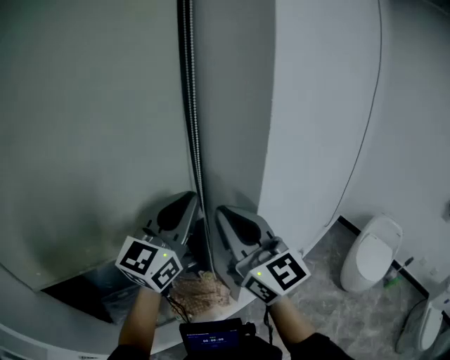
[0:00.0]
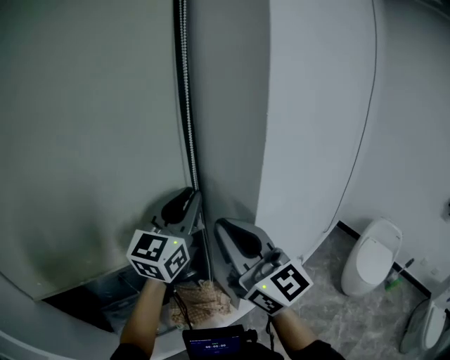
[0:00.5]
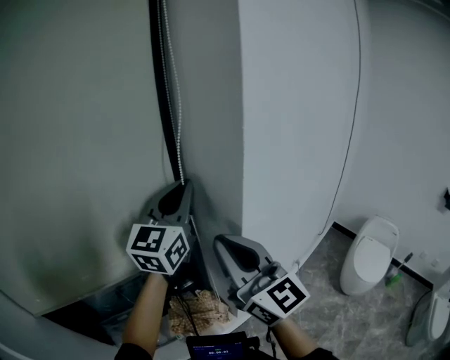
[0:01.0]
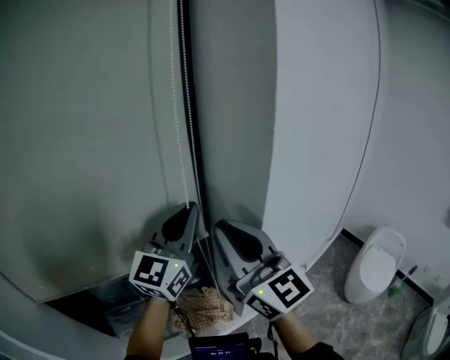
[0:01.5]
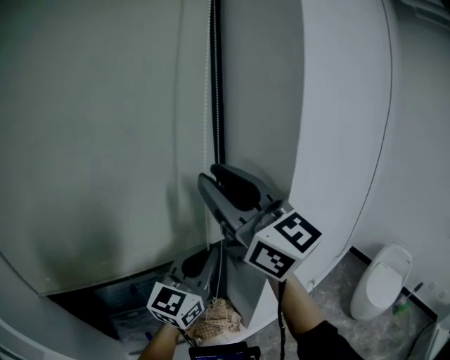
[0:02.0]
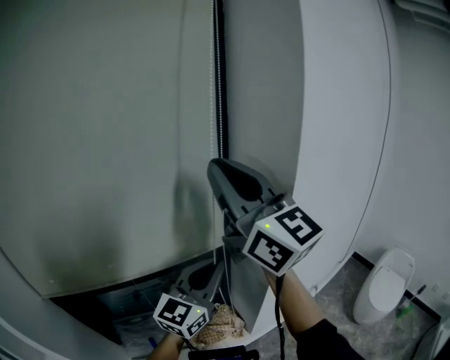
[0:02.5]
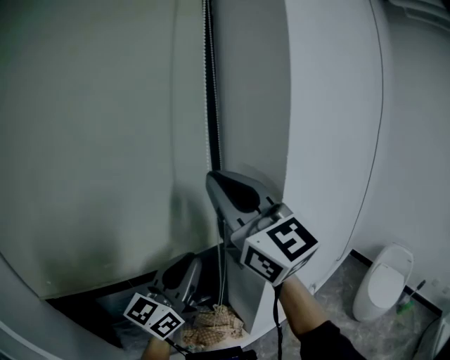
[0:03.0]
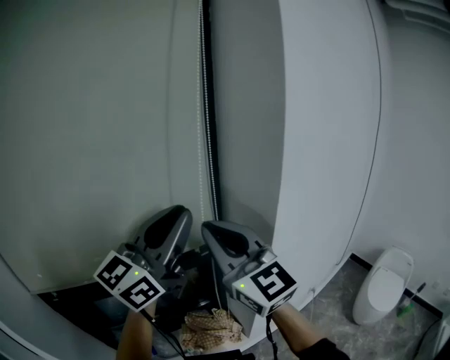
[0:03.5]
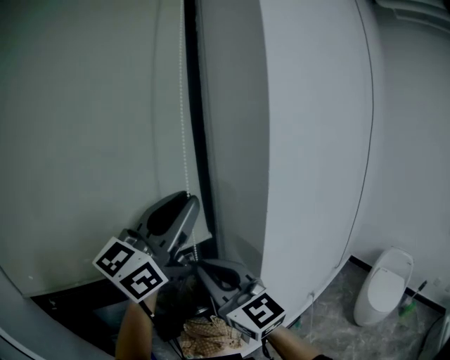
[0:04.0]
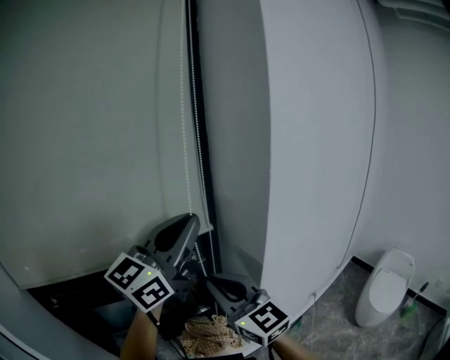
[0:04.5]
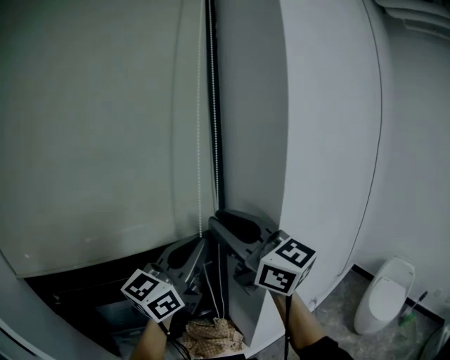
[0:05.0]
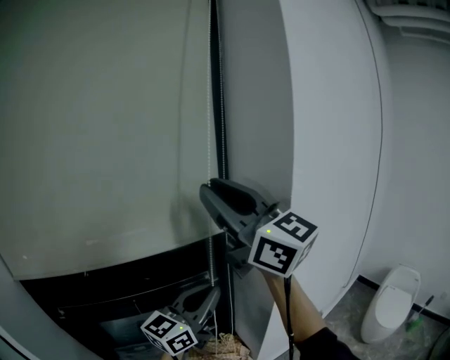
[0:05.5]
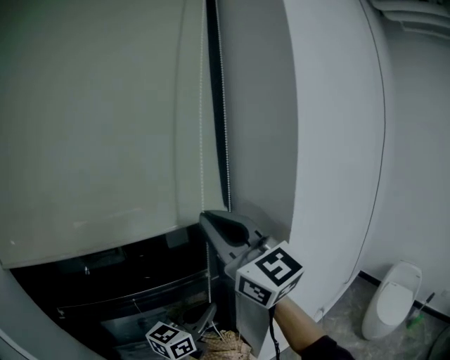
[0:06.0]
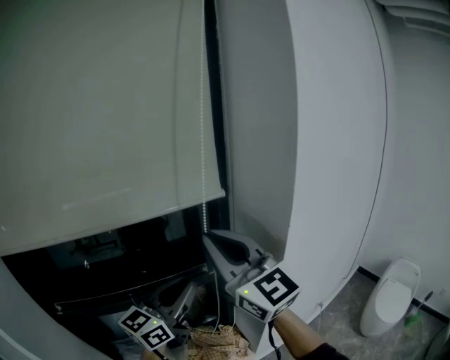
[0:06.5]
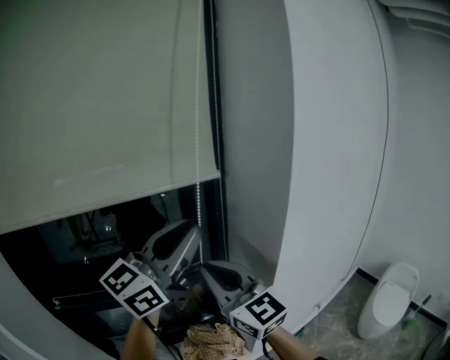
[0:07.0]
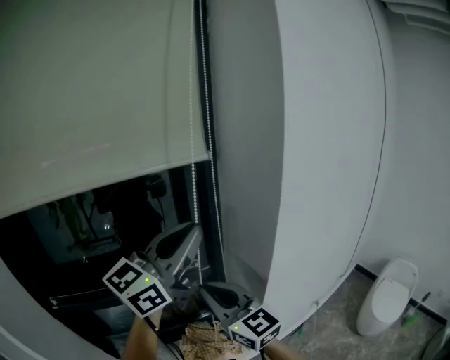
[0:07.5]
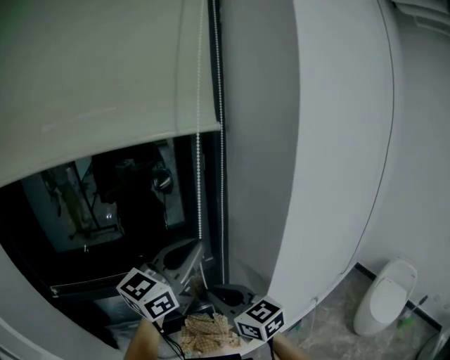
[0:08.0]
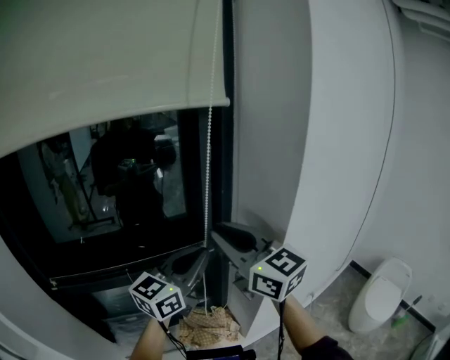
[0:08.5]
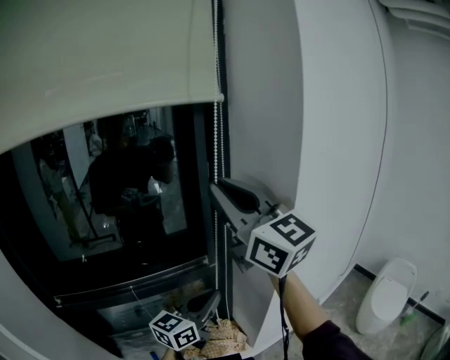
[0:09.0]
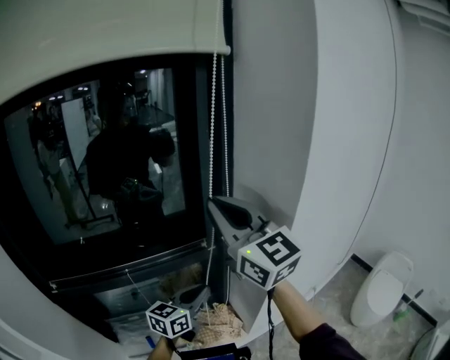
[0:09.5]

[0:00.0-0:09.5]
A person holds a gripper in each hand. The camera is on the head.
0:00.0 to 0:02.0: The right gripper is displaced upward by about 15 cm, and opens up. The left gripper moves downward, approximately 5 cm.
0:02.0 to 0:04.0: The left gripper goes some 15 cm upward. The right gripper heads downward, covering about 20 cm.
0:04.0 to 0:05.5: The left gripper heads downward, covering about 20 cm. The right gripper moves upward, some 20 cm.
0:05.5 to 0:07.5: The left gripper is displaced upward by some 15 cm. Meanwhile the right gripper goes about 25 cm downward, and swivels about 20 degrees.
0:07.5 to 0:09.5: The left gripper travels downward by roughly 35 cm, and rotates some 30 degrees. The right gripper goes up and down, about 30 cm each way, reversing 2 times.

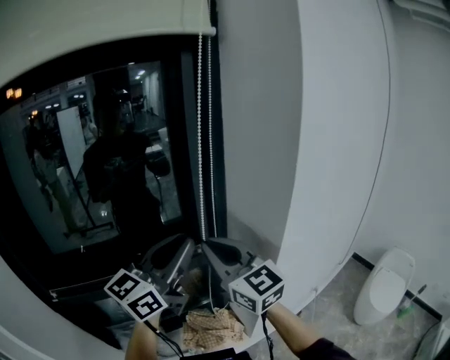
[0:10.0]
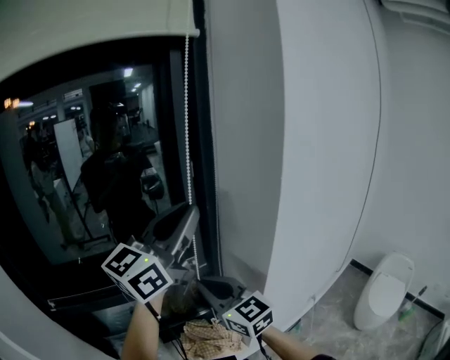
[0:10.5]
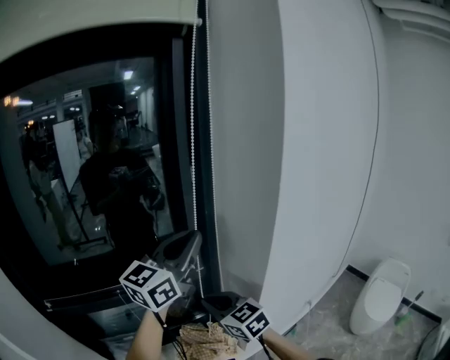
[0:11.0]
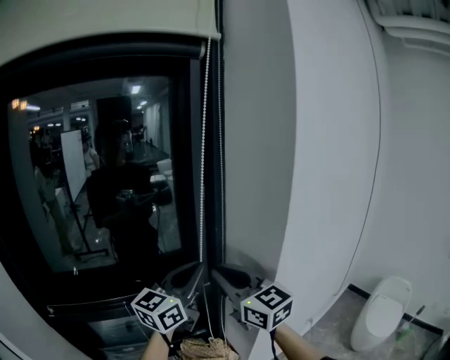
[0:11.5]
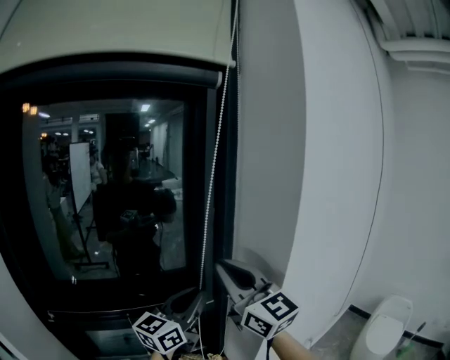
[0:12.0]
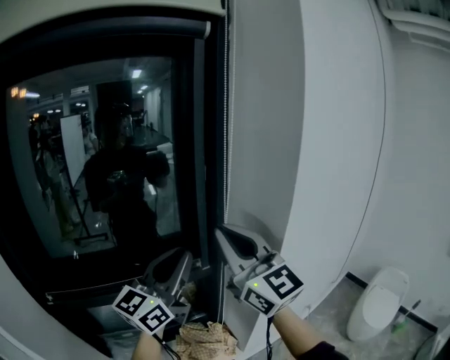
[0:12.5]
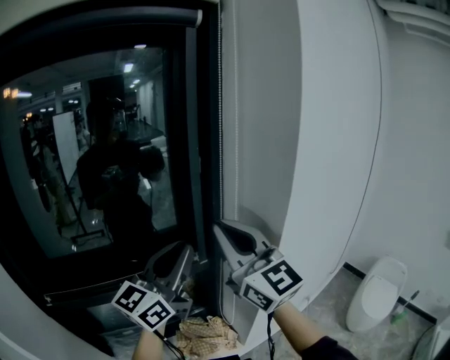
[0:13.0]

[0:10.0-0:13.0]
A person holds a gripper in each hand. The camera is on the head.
0:10.0 to 0:11.5: The left gripper reaches approximately 10 cm upward, then returns. Meanwhile the right gripper moves roughly 15 cm downward and comes back.
0:11.5 to 0:13.0: The right gripper shifts roughly 10 cm upward. The left gripper moves about 5 cm.

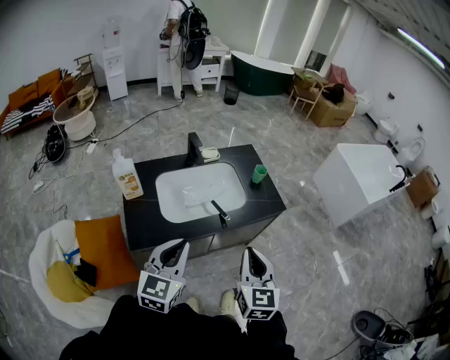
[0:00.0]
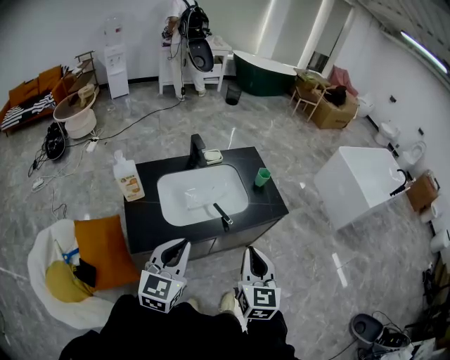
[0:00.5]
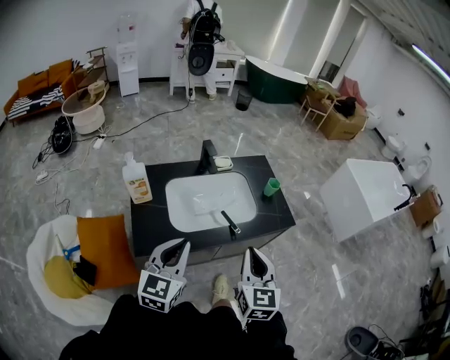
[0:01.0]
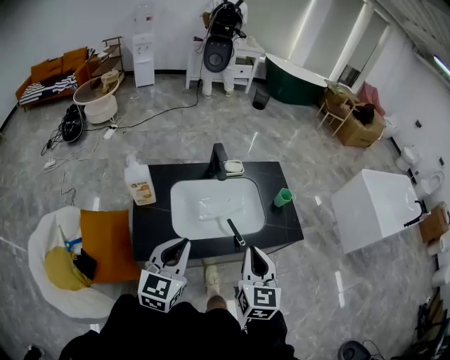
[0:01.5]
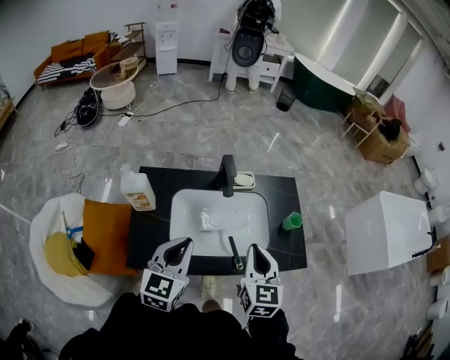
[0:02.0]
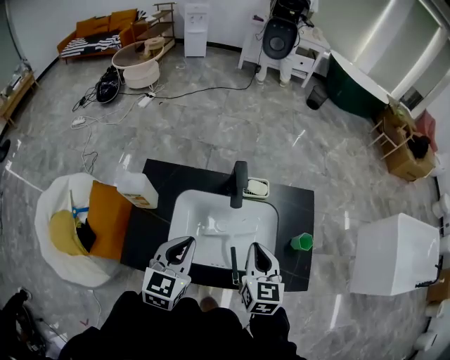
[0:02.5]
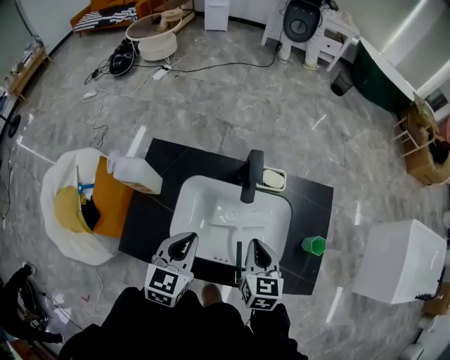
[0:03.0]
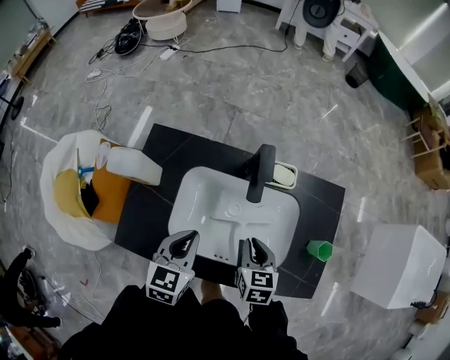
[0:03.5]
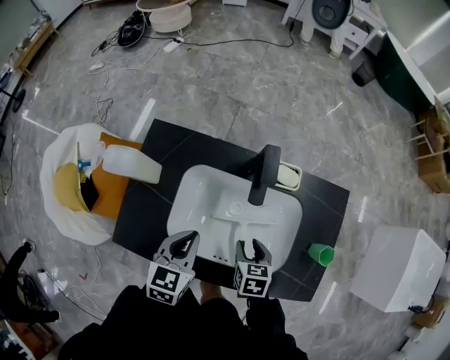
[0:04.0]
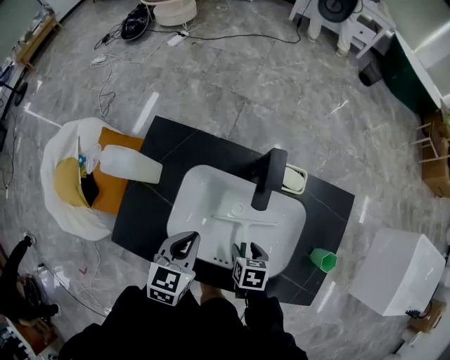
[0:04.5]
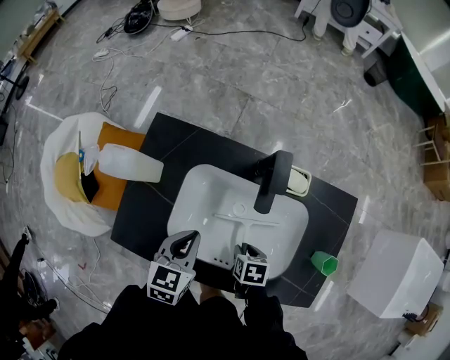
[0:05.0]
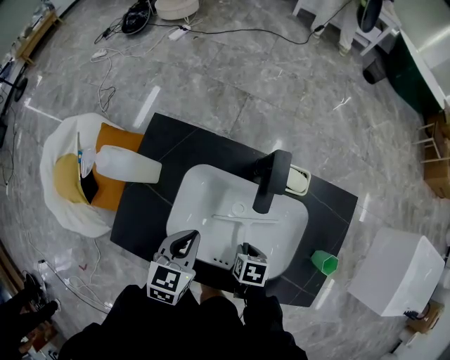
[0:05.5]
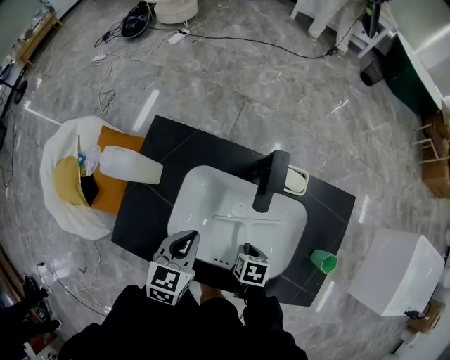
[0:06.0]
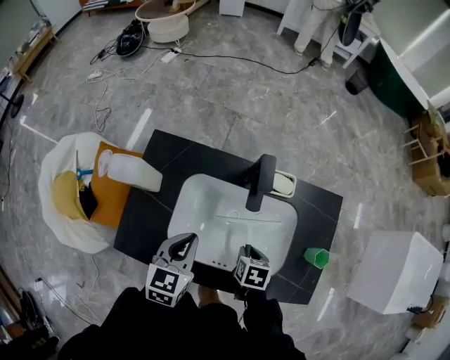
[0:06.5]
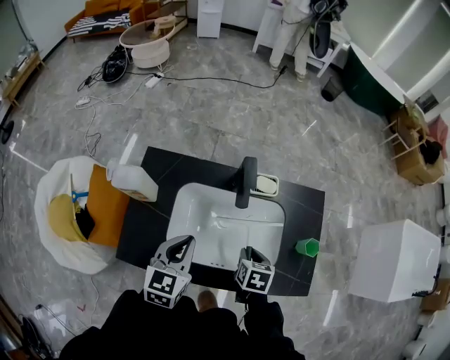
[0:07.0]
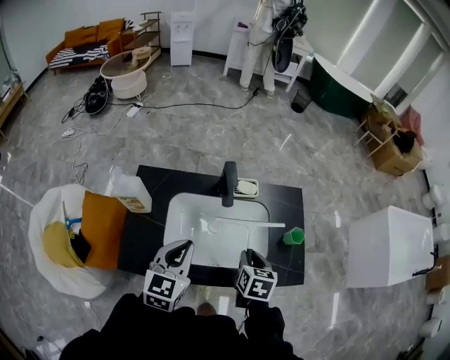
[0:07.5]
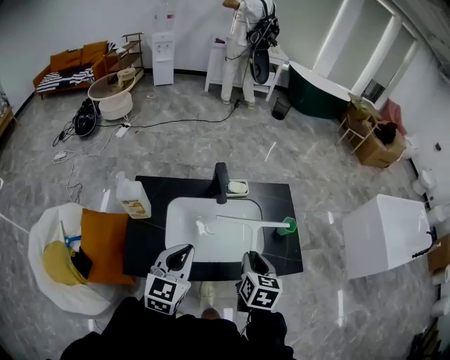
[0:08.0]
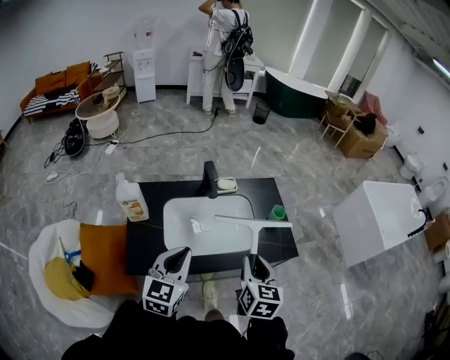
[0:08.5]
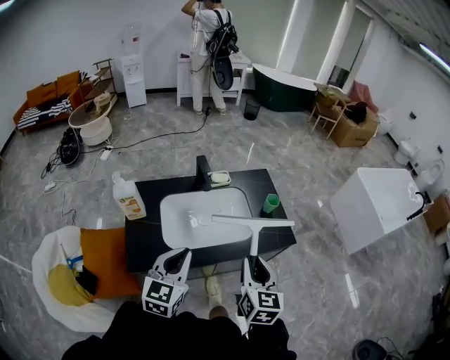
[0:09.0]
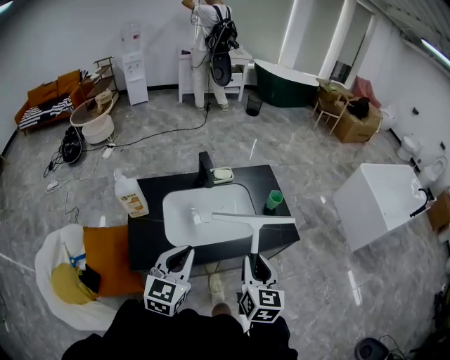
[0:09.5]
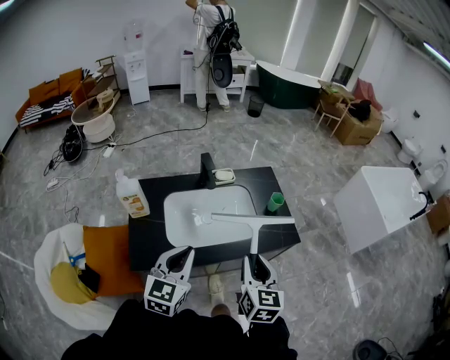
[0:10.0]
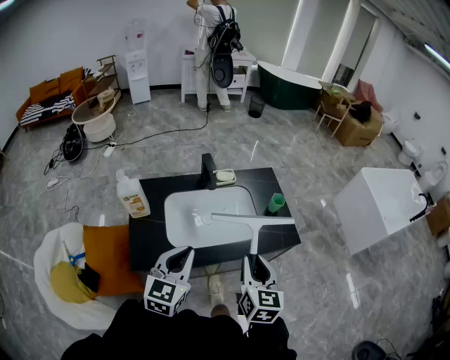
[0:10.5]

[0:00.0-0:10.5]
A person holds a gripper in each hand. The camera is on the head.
0:00.0 to 0:02.0: The two grippers go some 25 cm forward.
0:02.0 to 0:04.0: Both grippers move downward and forward, approximately 30 cm. The right gripper points its fingers about 40 degrees further downward, and opens, while the left gripper swivels roughly 30 degrees.
0:04.0 to 0:06.5: The right gripper travels downward and back again, some 10 cm each way.
0:06.5 to 0:08.5: The left gripper ends up some 30 cm from where it was, and swivels about 30 degrees; the right gripper shifts about 30 cm upward, and tilts its fingers approximately 40 degrees upward.
0:08.5 to 0:10.5: The right gripper goes approximately 5 cm backward.

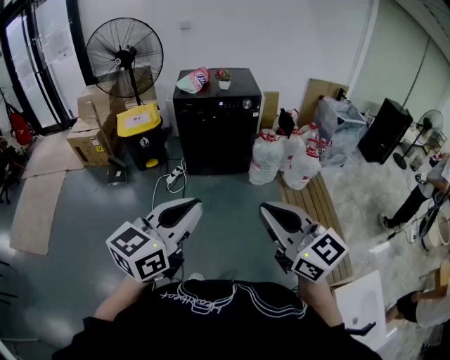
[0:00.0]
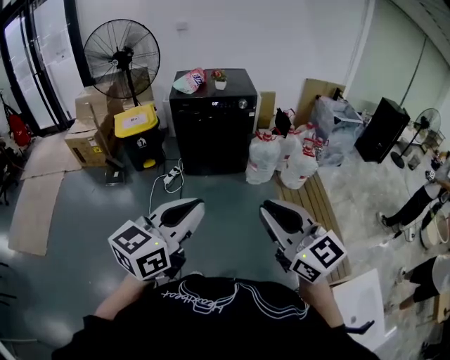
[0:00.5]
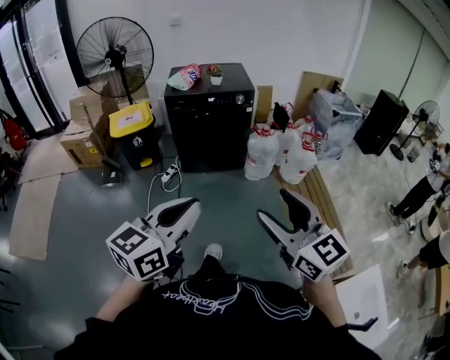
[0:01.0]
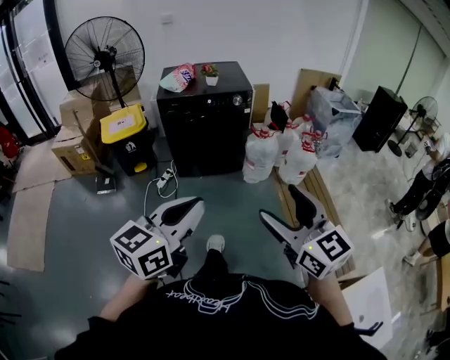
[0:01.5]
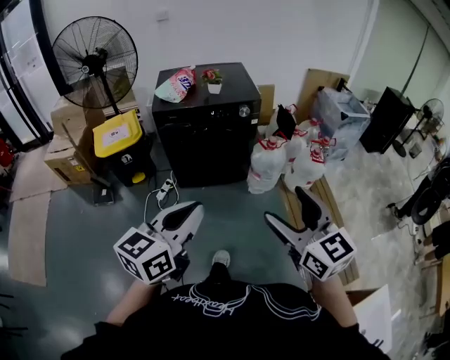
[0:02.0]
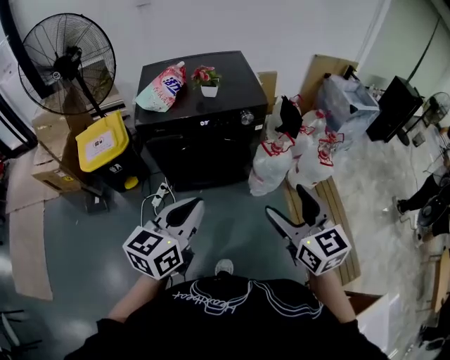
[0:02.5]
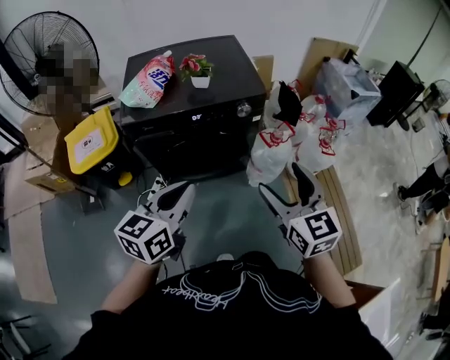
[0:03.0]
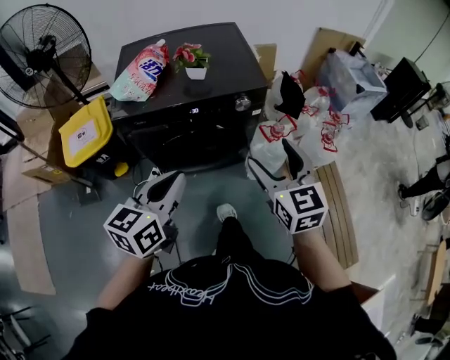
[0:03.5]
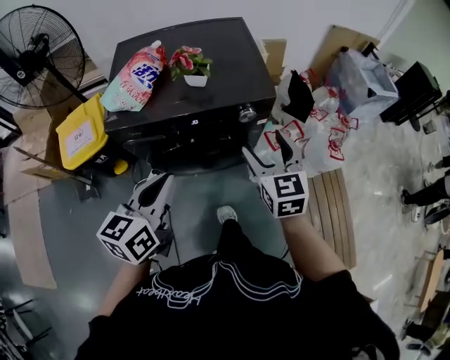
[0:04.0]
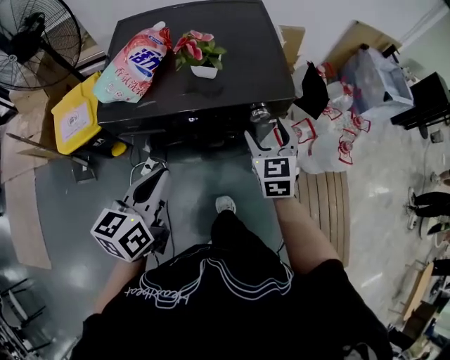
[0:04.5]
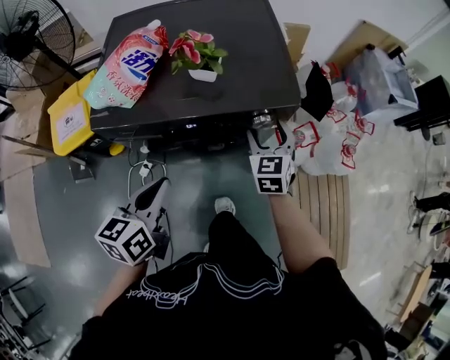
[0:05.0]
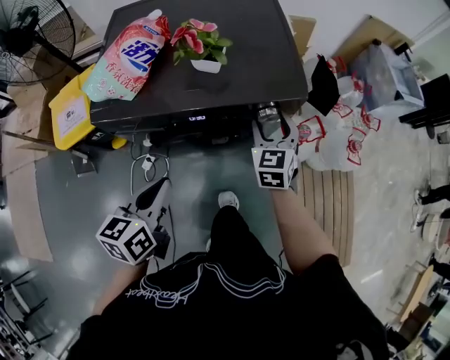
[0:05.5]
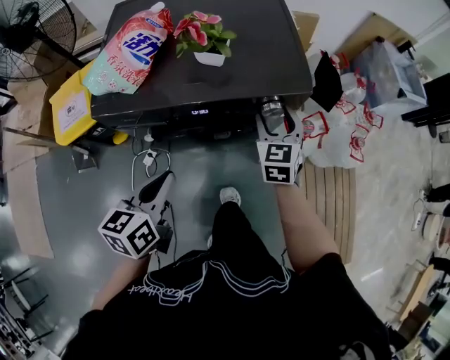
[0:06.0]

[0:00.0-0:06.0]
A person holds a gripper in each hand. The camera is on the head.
0:00.0 to 0:02.0: The two grippers go approximately 25 cm forward. The right gripper opens its fingers.
0:02.0 to 0:04.0: The pair of grippers is taken forward, some 50 cm.
0:04.0 to 0:06.0: The left gripper moves downward, approximately 10 cm. Meanwhile the right gripper moves forward and downward, some 20 cm.
